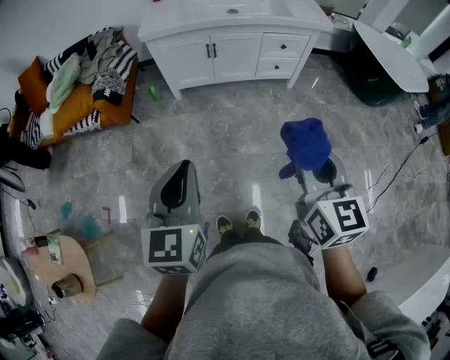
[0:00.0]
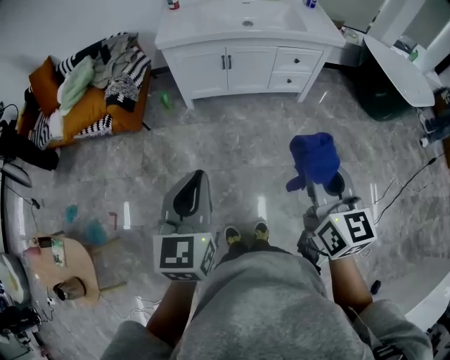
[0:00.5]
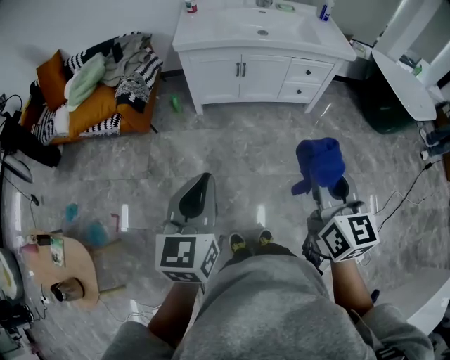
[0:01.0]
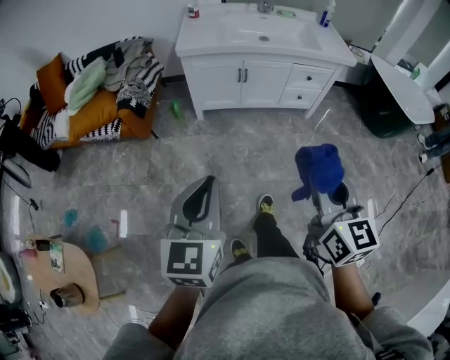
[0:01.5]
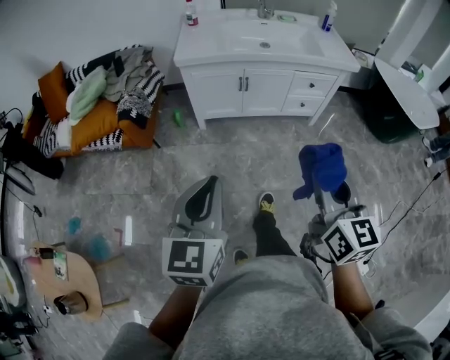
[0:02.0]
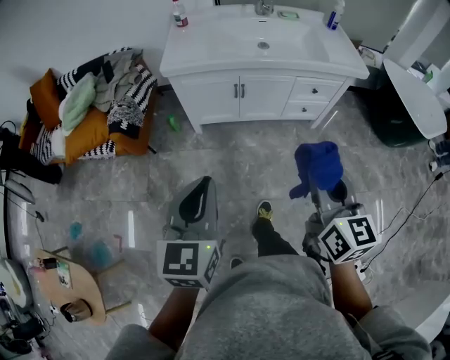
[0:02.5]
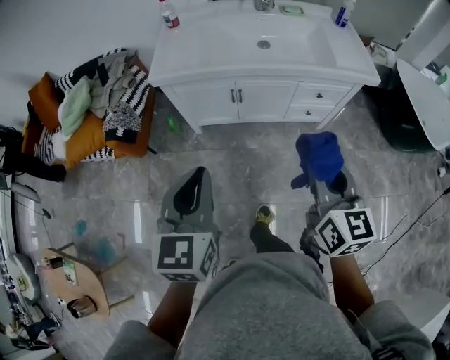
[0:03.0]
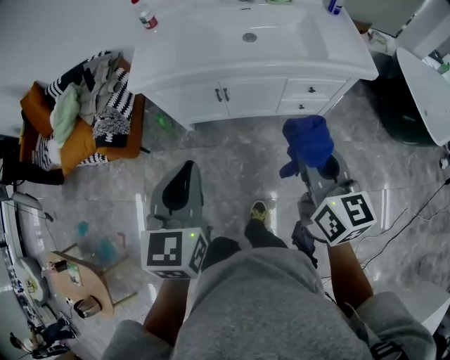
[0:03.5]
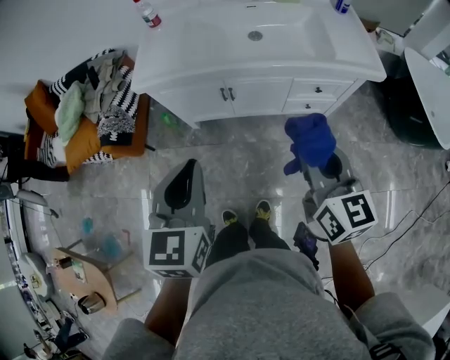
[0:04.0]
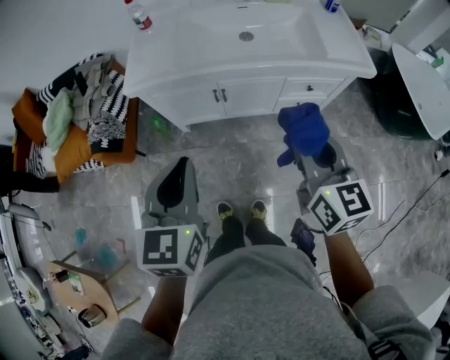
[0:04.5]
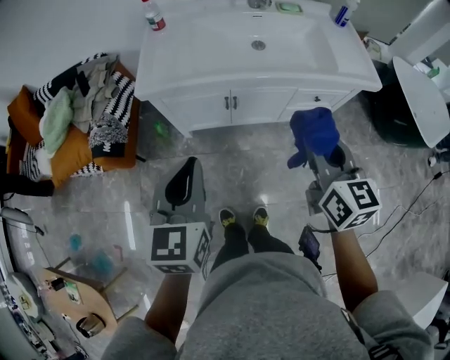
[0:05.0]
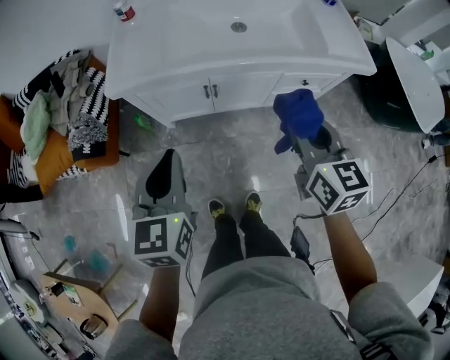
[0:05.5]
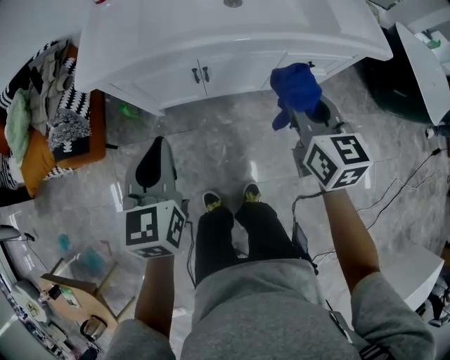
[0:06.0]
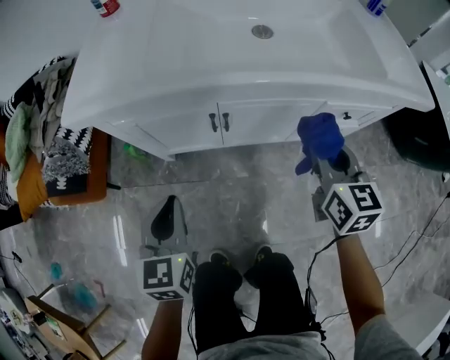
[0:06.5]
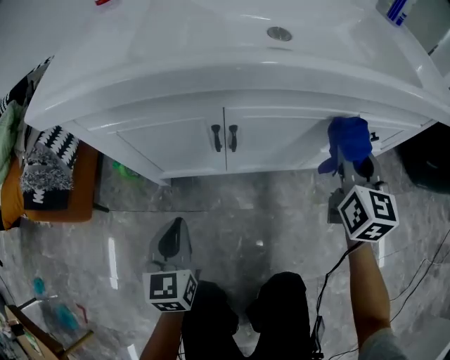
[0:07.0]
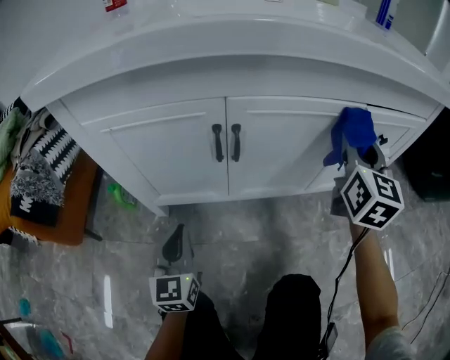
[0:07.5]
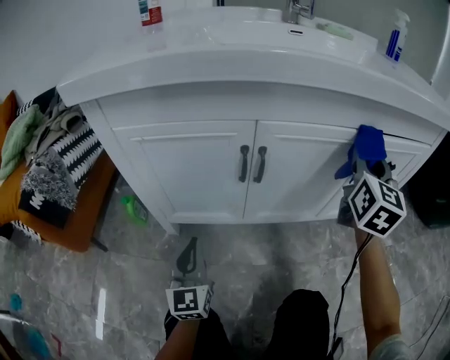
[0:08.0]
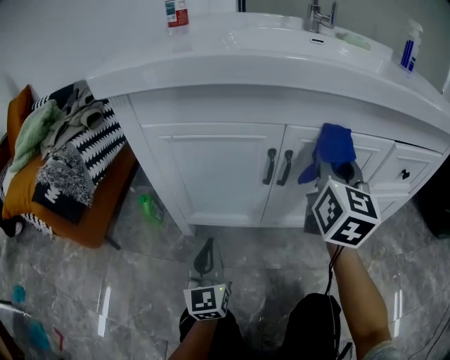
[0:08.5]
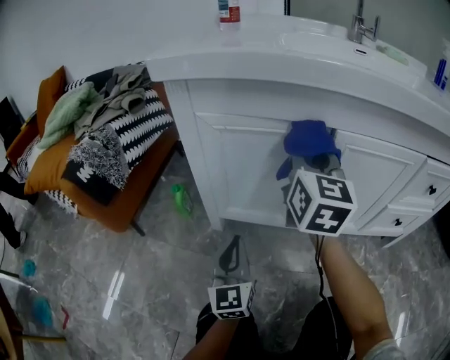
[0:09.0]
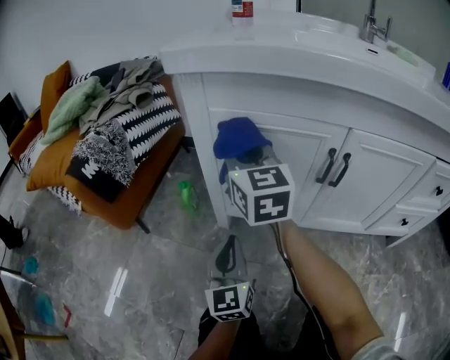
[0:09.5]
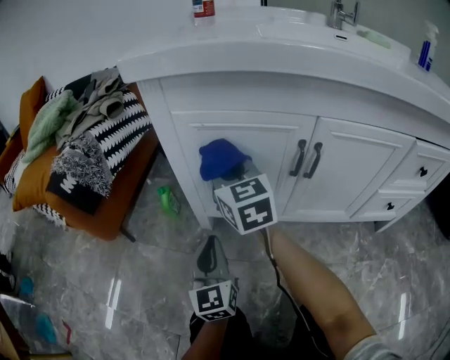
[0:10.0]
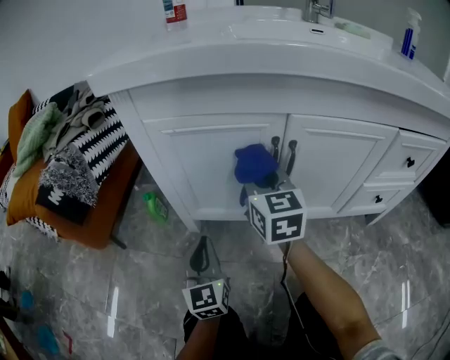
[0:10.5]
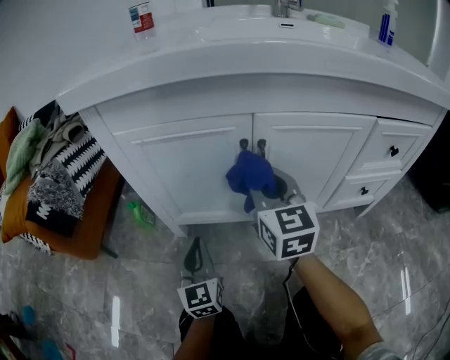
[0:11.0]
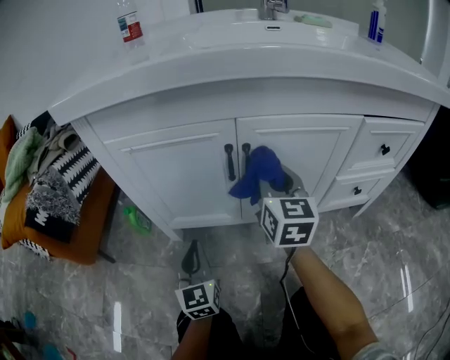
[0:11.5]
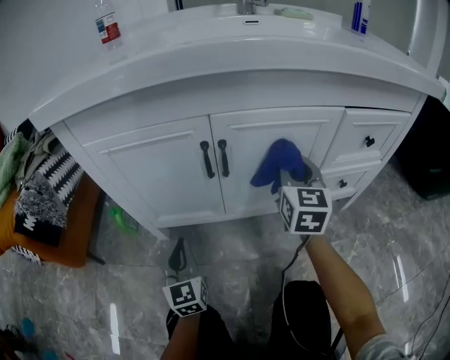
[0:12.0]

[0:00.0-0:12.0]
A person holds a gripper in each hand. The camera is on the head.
0:00.0 to 0:02.0: The two grippers go roughly 10 cm to the left and forward.
0:02.0 to 0:04.0: The left gripper travels forward and to the right by roughly 35 cm, while the right gripper travels forward by roughly 35 cm.
0:04.0 to 0:06.0: The left gripper is displaced downward, forward and to the left by approximately 20 cm. Meanwhile the right gripper travels forward and downward by some 20 cm.
0:06.0 to 0:08.0: The left gripper shifts some 50 cm downward, and rotates about 20 degrees; the right gripper shifts some 30 cm downward and forward, and rotates some 40 degrees.
0:08.0 to 0:10.0: The left gripper changes place by some 10 cm, while the right gripper shifts by approximately 50 cm, and swivels approximately 50 degrees.
0:10.0 to 0:12.0: The right gripper heads to the right, covering about 40 cm, and rotates approximately 40 degrees, while the left gripper is displaced to the right by some 10 cm.

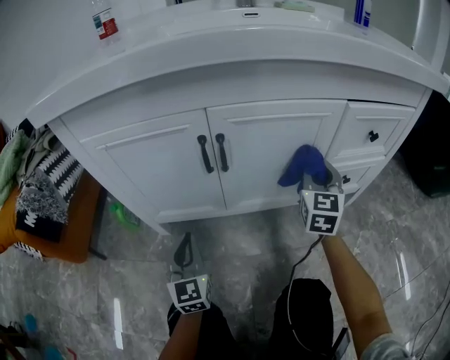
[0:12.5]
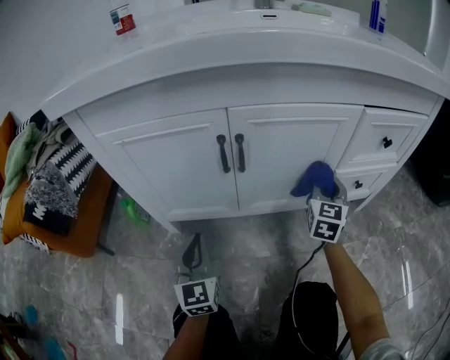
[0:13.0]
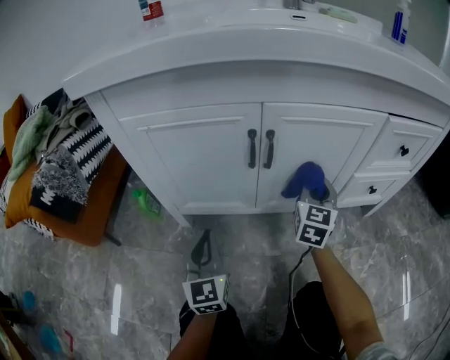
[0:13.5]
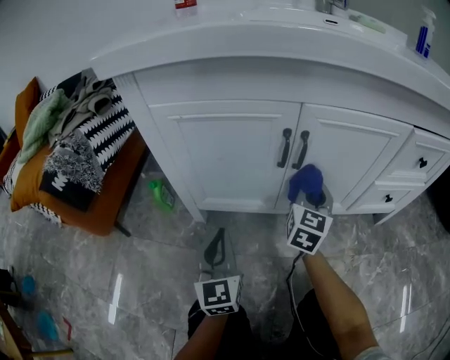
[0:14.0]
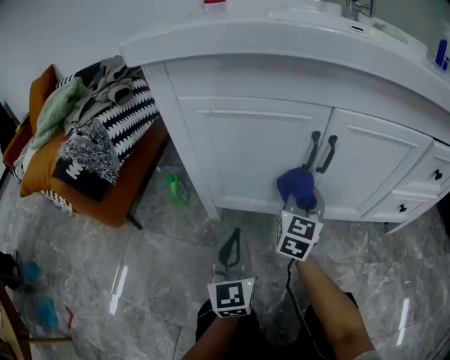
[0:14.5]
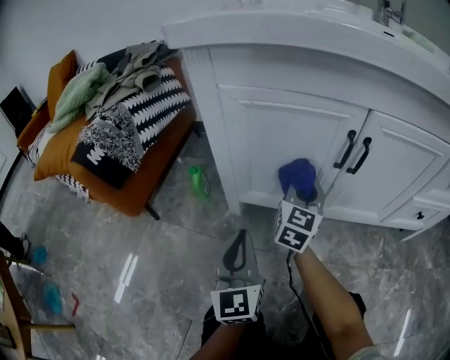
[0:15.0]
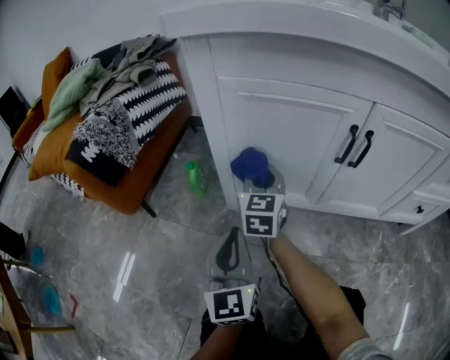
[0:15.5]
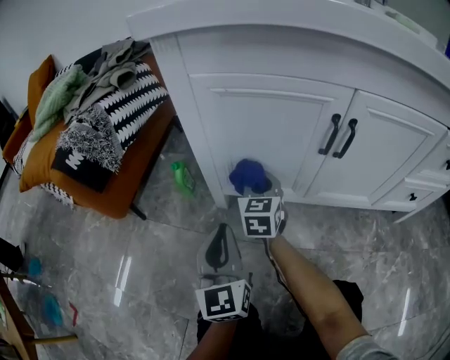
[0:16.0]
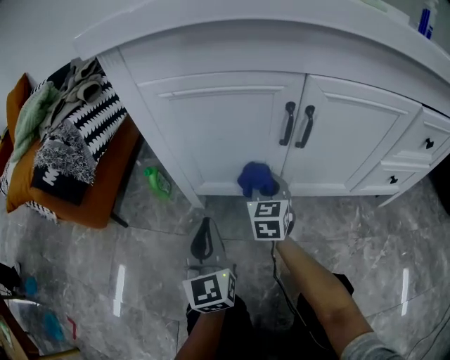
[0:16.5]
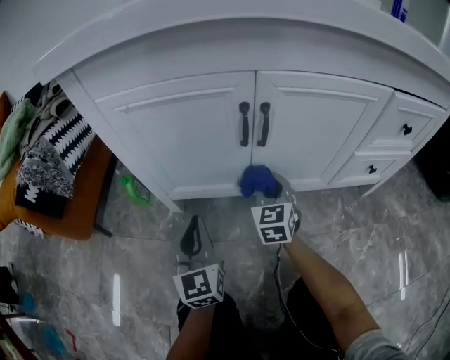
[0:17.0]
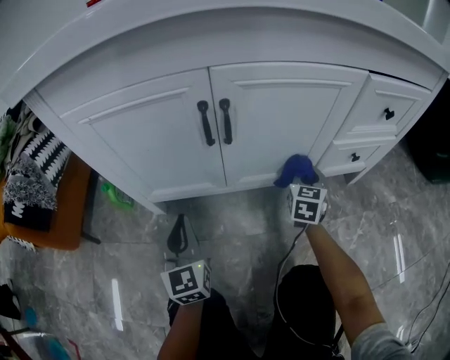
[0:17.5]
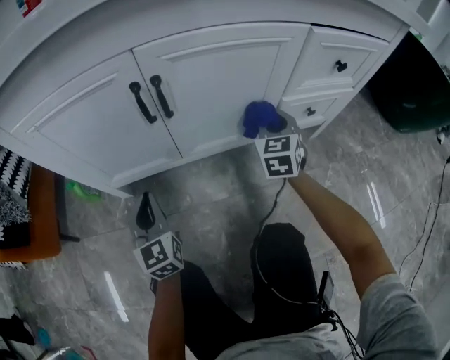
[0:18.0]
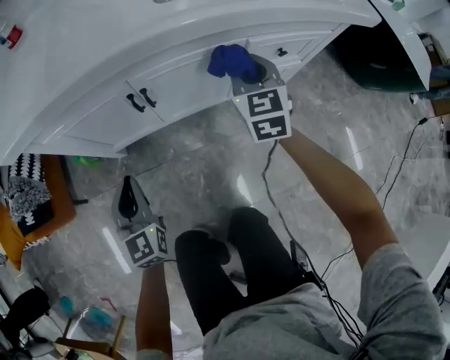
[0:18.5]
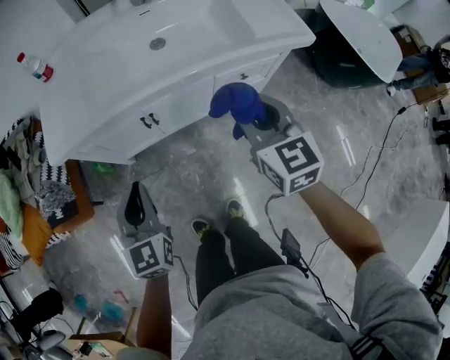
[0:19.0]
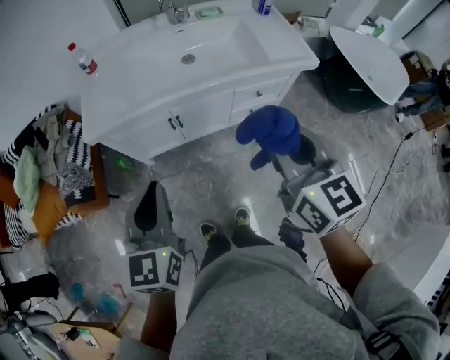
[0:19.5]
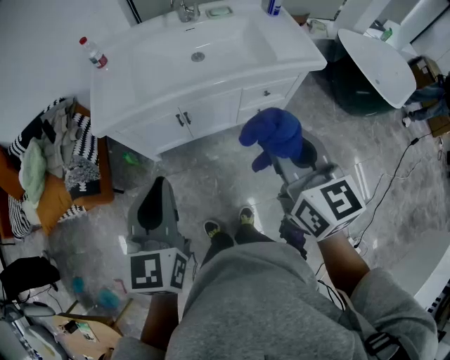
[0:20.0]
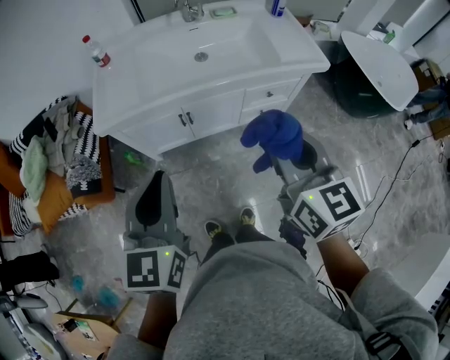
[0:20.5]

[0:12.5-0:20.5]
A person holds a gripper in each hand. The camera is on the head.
0:12.5 to 0:14.5: The left gripper goes roughly 5 cm to the left. The right gripper moves to the left, about 25 cm.
0:14.5 to 0:16.5: The right gripper shifts about 10 cm downward, and reaches some 20 cm to the left, then returns.
0:16.5 to 0:18.5: The right gripper travels upward and to the right by approximately 40 cm, while the left gripper heads upward and to the right, covering roughly 25 cm, and changes its angle by roughly 20 degrees.
0:18.5 to 0:20.5: The left gripper moves upward, roughly 50 cm; the right gripper heads upward and backward, covering roughly 50 cm, and rotates roughly 30 degrees.

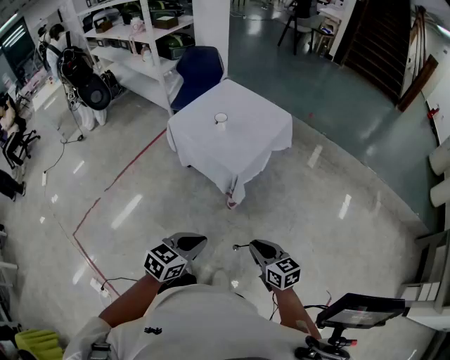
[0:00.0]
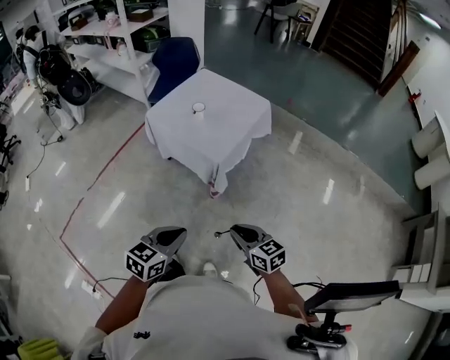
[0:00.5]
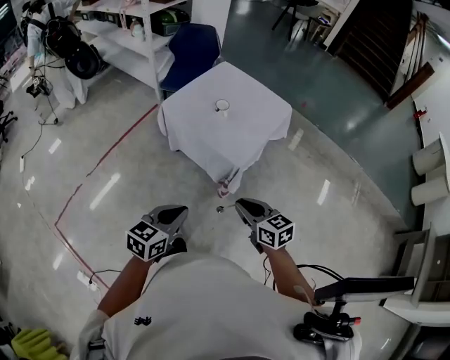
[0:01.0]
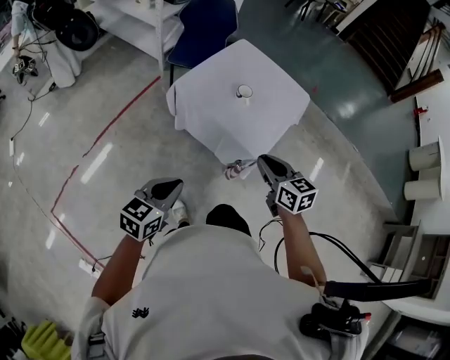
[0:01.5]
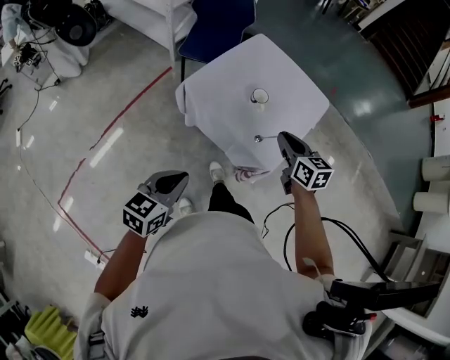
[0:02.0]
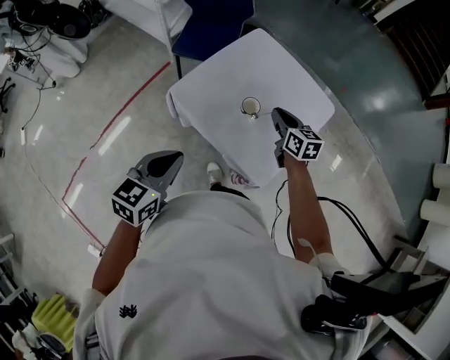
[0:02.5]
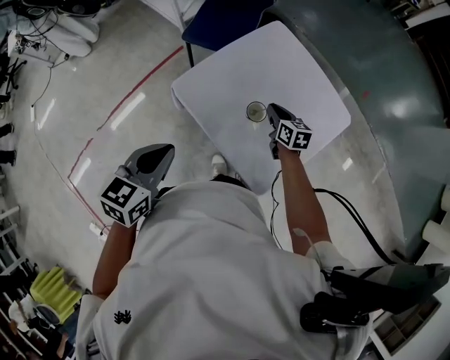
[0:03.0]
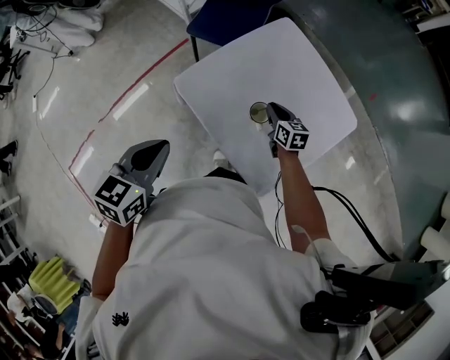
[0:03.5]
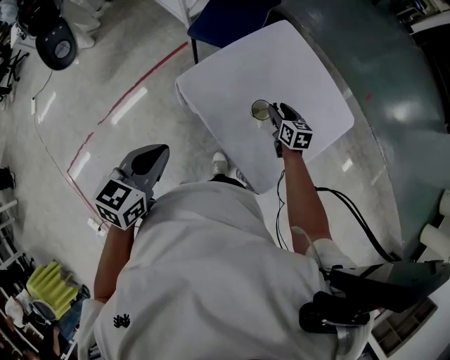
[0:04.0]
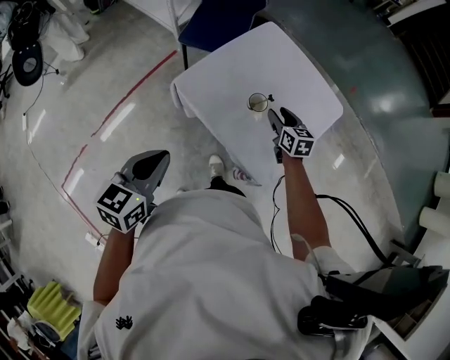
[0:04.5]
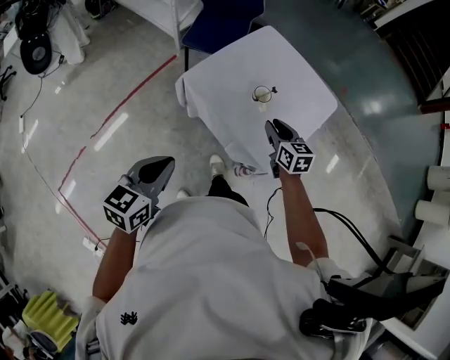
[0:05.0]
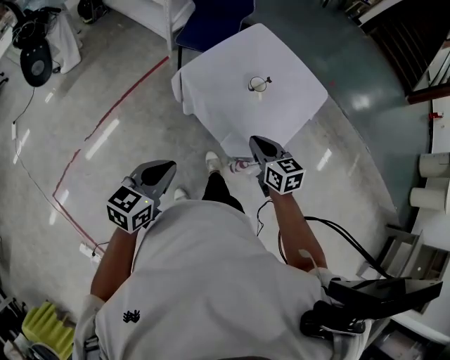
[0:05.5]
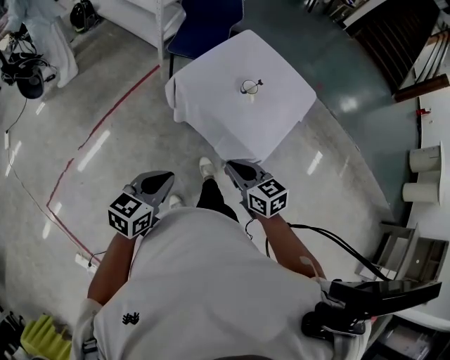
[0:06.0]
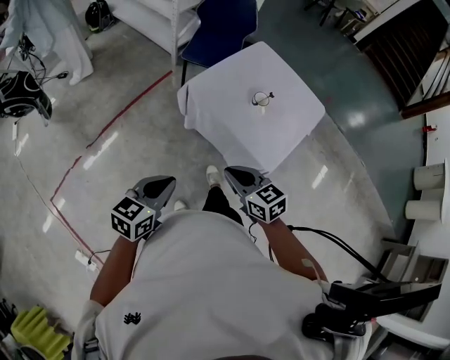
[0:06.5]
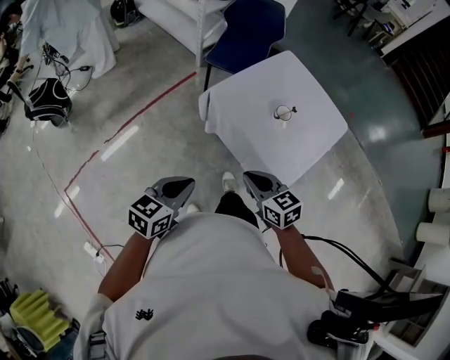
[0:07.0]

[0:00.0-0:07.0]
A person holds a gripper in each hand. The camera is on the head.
0:00.0 to 0:02.0: Both grippers are carried forward and to the left, roughly 50 cm.
0:02.0 to 0:03.5: The left gripper moves forward, about 25 cm. The right gripper goes approximately 40 cm forward and downward.
0:03.5 to 0:05.0: The right gripper heads backward and upward, covering about 25 cm, and opens, then closes once more; the left gripper heads backward and to the left, covering approximately 20 cm.
0:05.0 to 0:07.0: The right gripper heads backward and to the left, covering about 25 cm, swivels about 20 degrees, and closes. Meanwhile the left gripper heads backward, covering roughly 5 cm.
